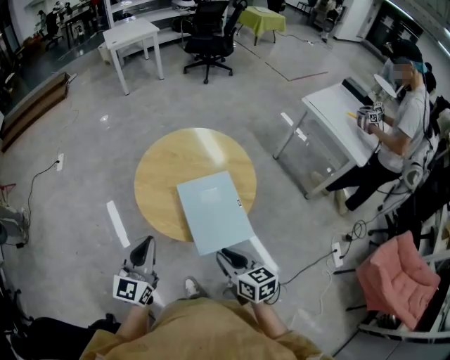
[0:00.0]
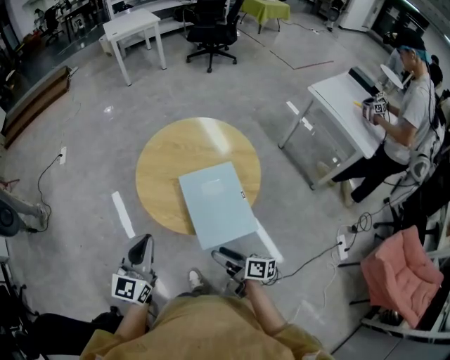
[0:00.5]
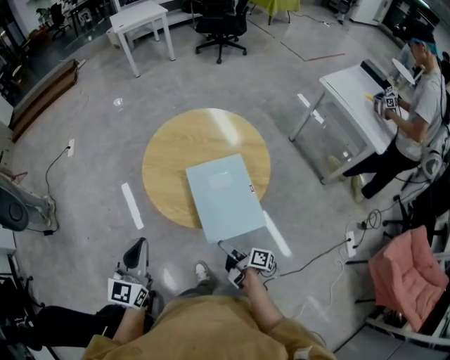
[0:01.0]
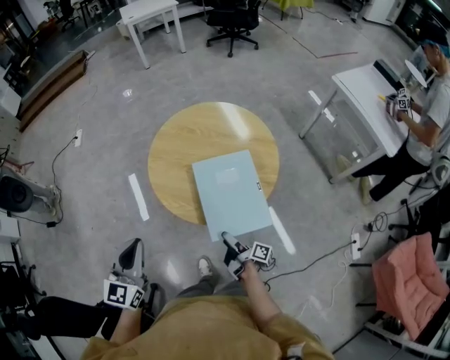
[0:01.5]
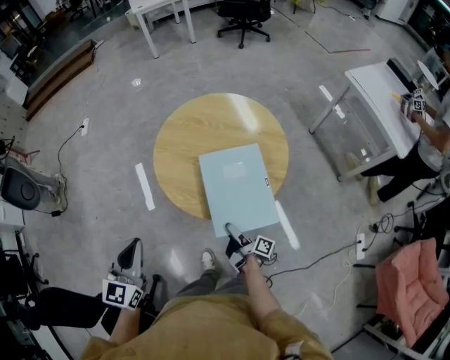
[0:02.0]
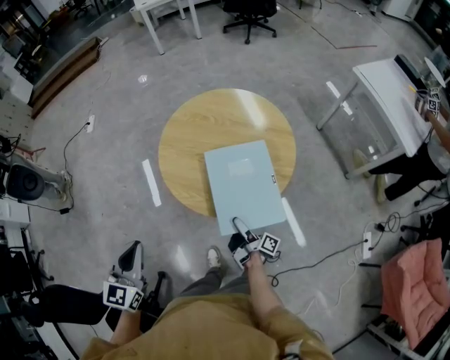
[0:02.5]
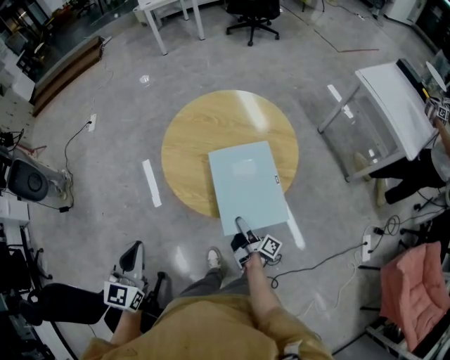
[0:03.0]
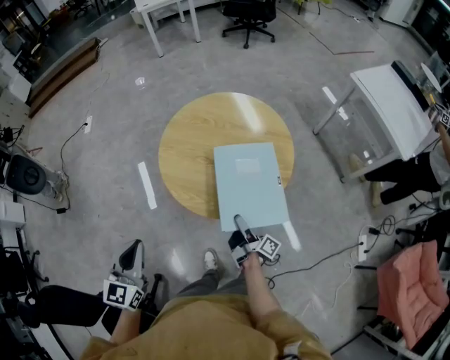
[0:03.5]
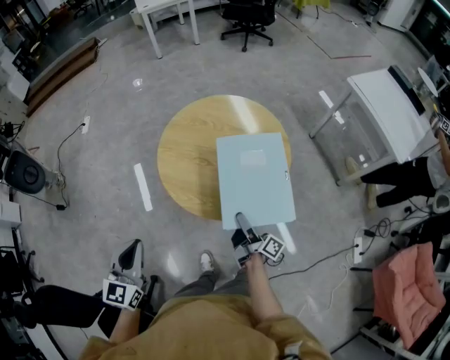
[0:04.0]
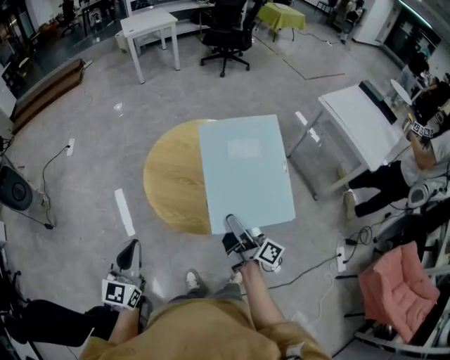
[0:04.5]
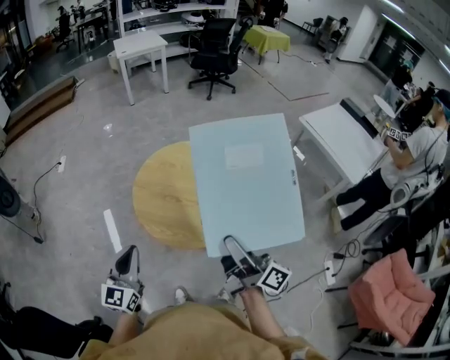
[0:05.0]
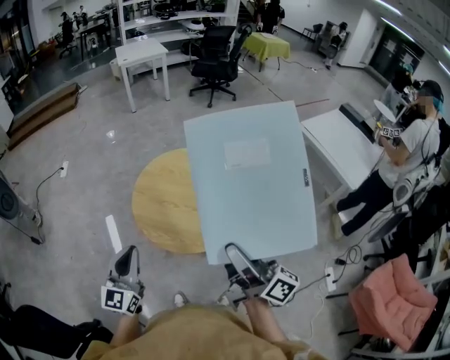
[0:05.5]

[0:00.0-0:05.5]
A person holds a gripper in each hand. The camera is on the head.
0:00.0 to 0:02.0: The left gripper moves to the left, about 10 cm, while the right gripper shifts about 25 cm downward, twists approximately 70 degrees clockwise, seen from behind, and opens.
0:02.0 to 0:03.5: The right gripper shifts by about 5 cm.
0:03.5 to 0:05.5: The right gripper is displaced upward by roughly 40 cm, and changes its angle by approximately 40 degrees; the left gripper heads to the right and upward, covering about 10 cm.

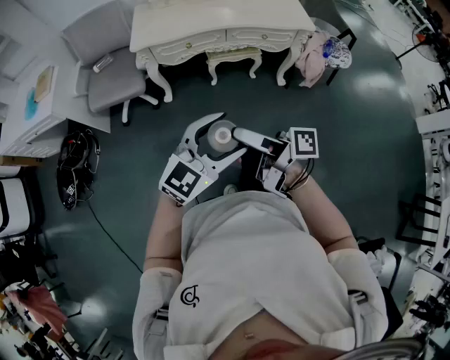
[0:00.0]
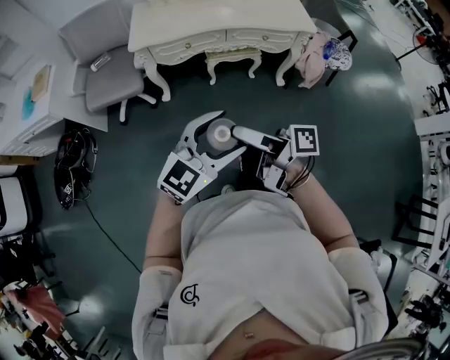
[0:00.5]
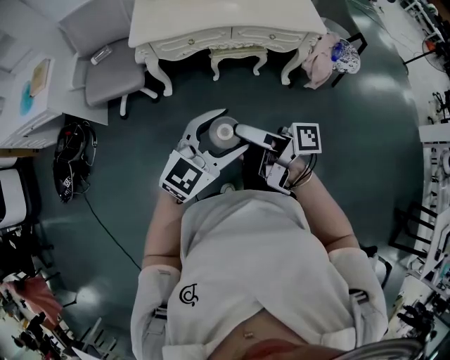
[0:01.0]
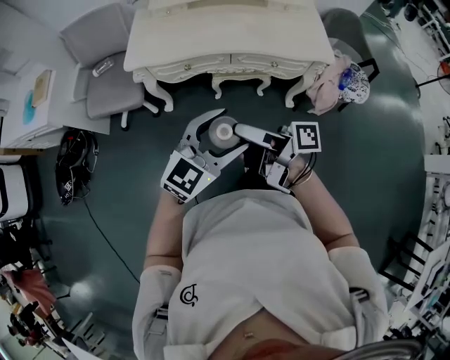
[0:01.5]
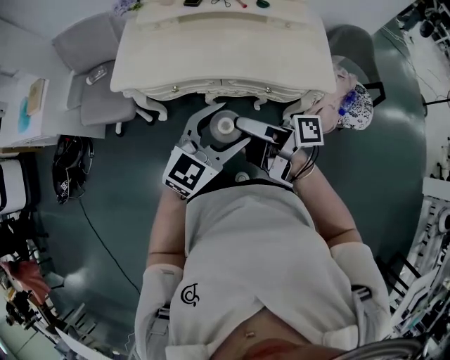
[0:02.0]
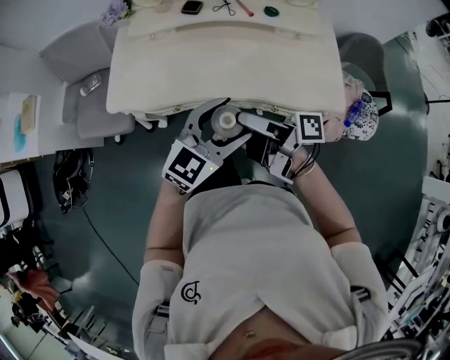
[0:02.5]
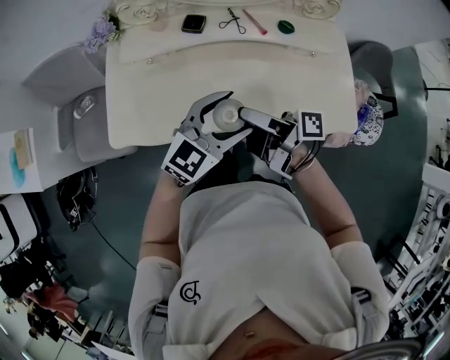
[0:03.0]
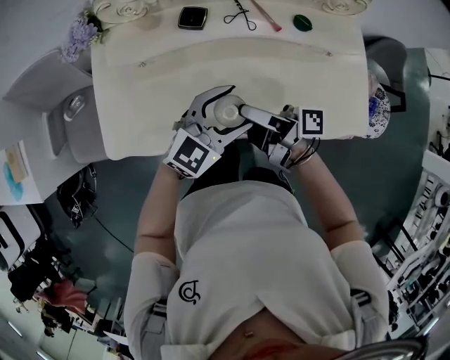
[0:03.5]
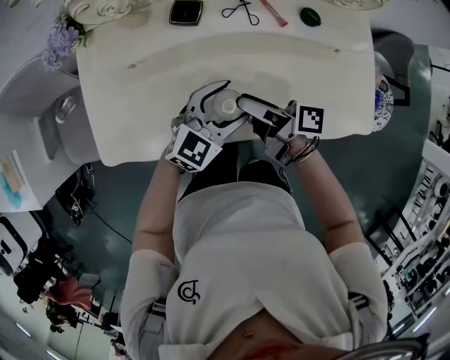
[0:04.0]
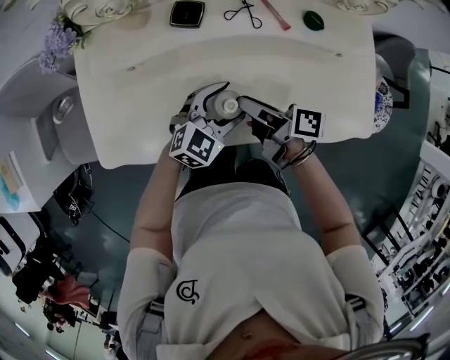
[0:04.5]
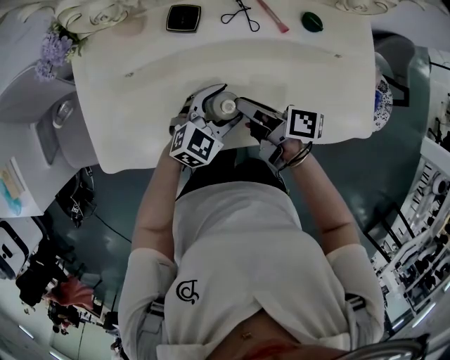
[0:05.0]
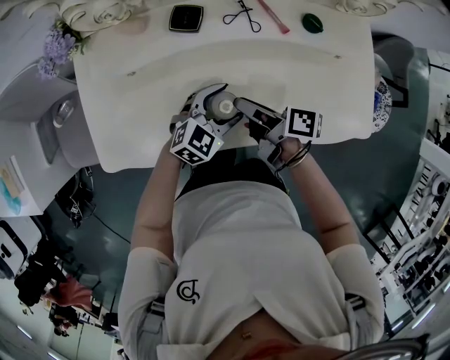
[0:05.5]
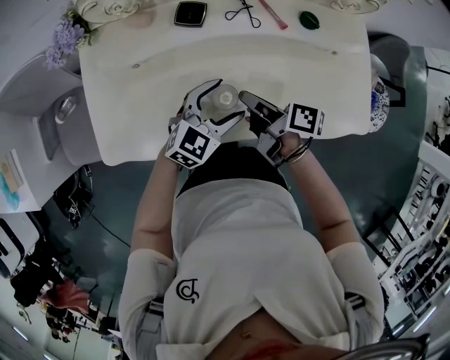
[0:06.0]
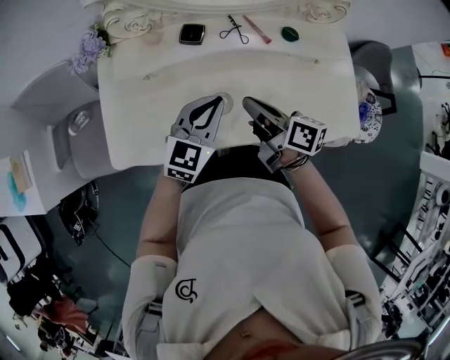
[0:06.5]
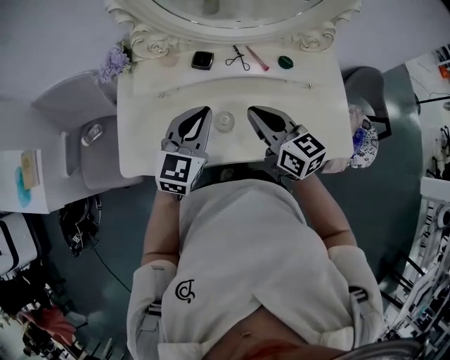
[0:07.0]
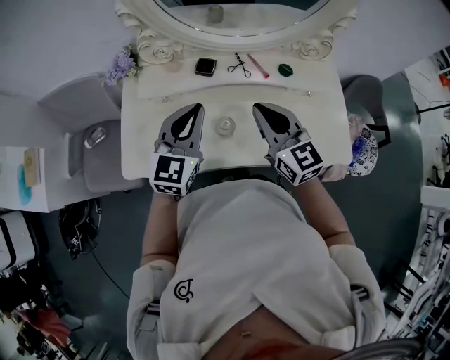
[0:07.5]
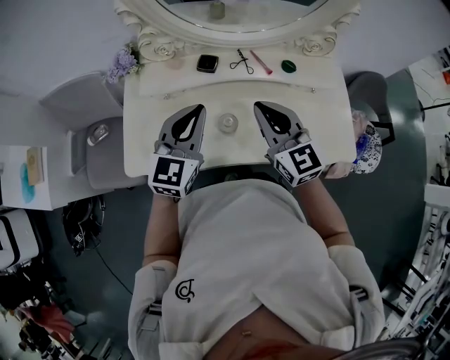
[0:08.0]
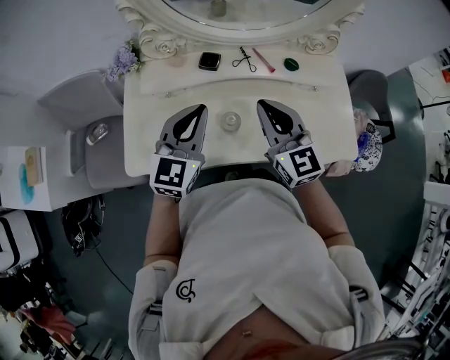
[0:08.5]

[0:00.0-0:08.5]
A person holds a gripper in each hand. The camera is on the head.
0:00.0 to 0:02.0: The left gripper ends up some 40 cm from where it was.
0:02.0 to 0:04.0: The left gripper changes place by about 40 cm.
0:04.0 to 0:06.5: The left gripper shifts roughly 10 cm upward, and closes its fingers.
0:06.5 to 0:08.5: The left gripper heads upward, covering approximately 10 cm.

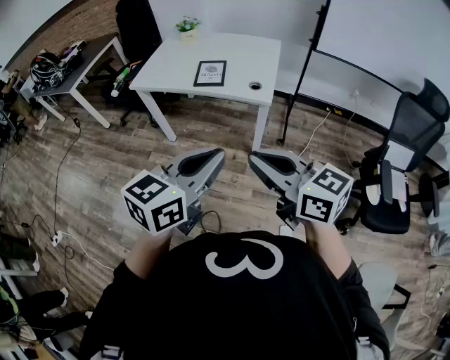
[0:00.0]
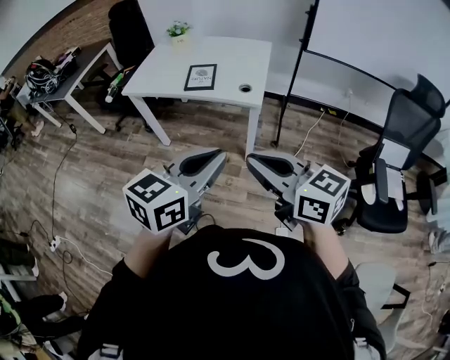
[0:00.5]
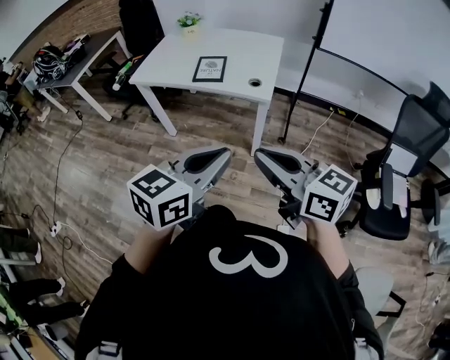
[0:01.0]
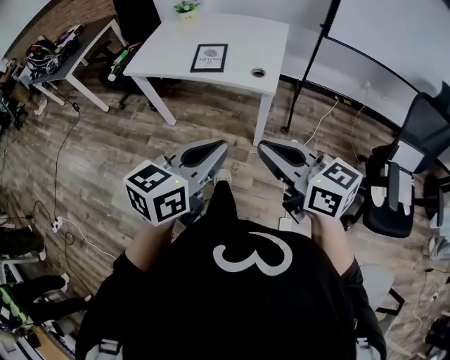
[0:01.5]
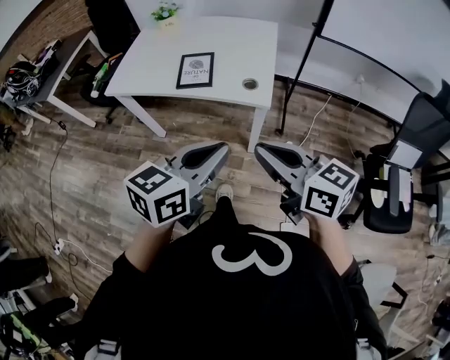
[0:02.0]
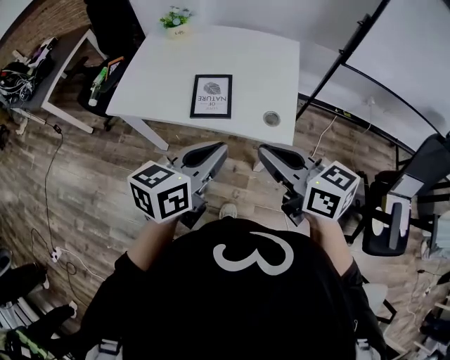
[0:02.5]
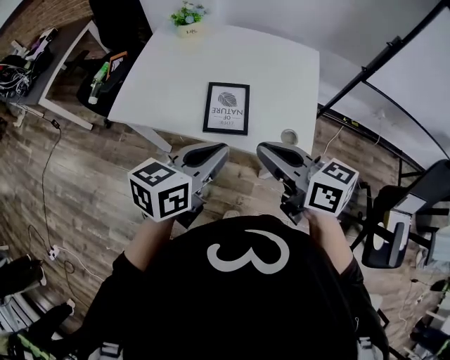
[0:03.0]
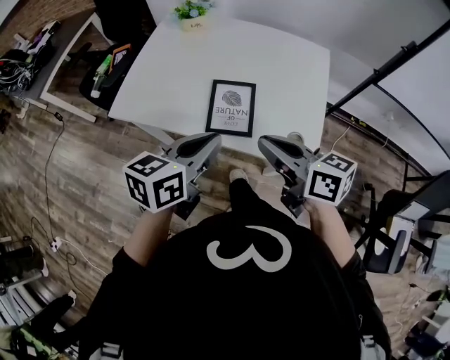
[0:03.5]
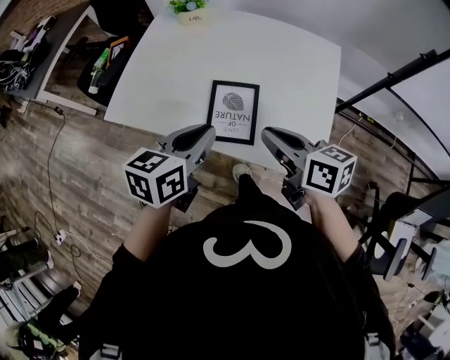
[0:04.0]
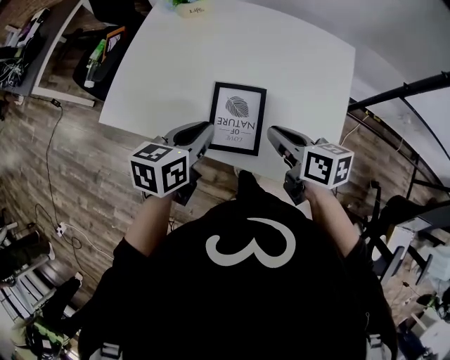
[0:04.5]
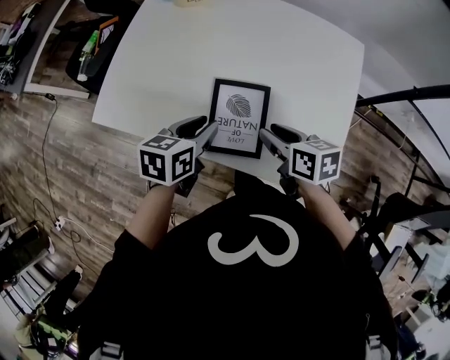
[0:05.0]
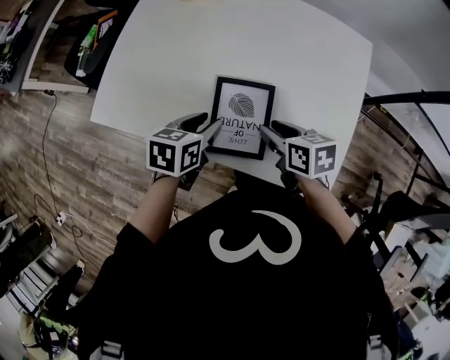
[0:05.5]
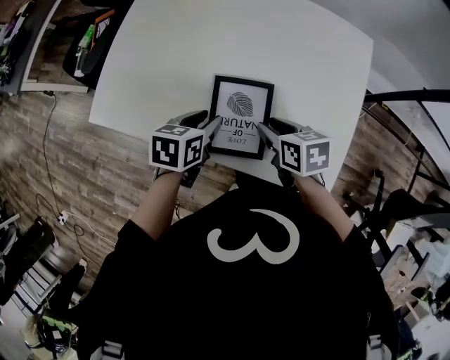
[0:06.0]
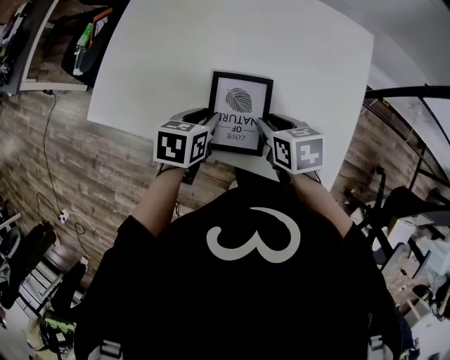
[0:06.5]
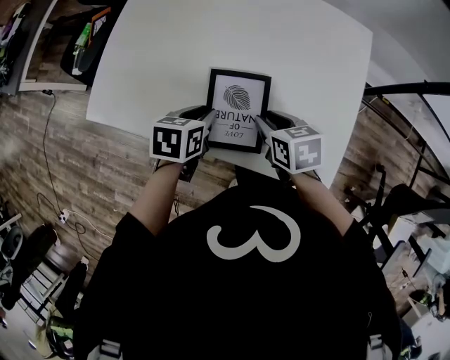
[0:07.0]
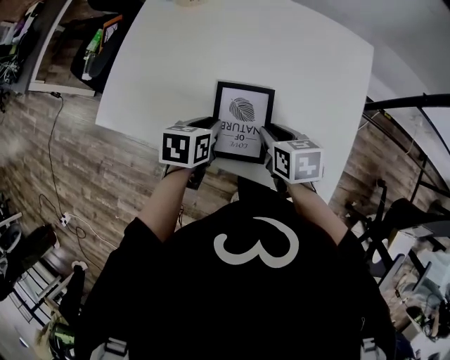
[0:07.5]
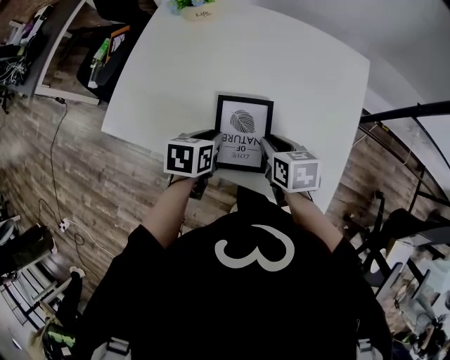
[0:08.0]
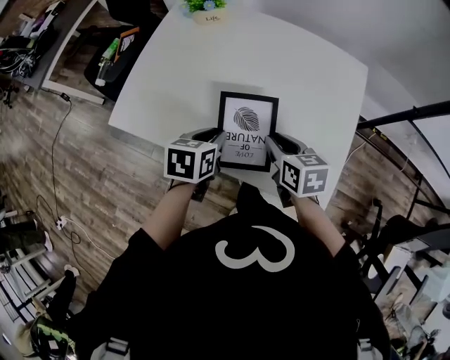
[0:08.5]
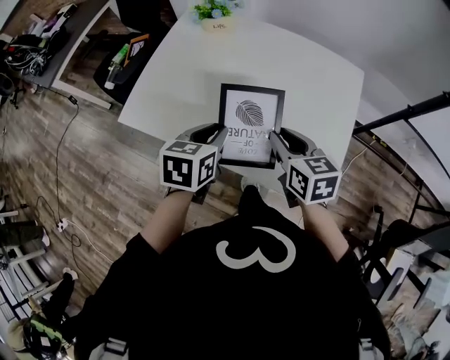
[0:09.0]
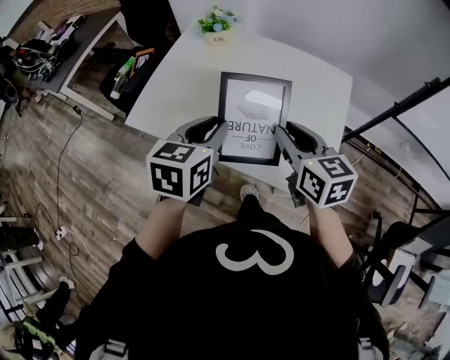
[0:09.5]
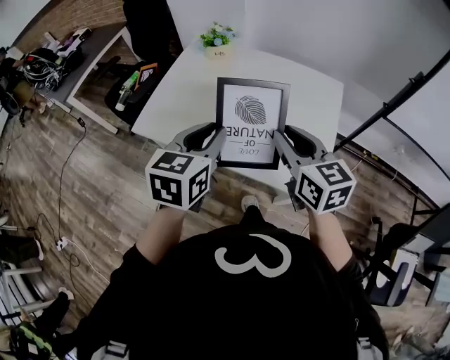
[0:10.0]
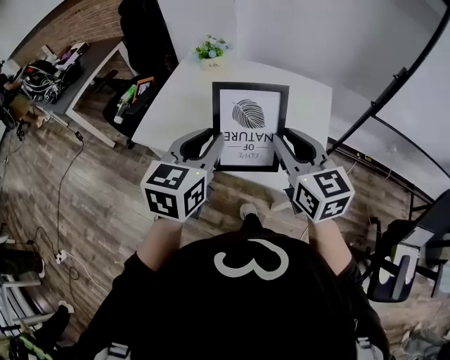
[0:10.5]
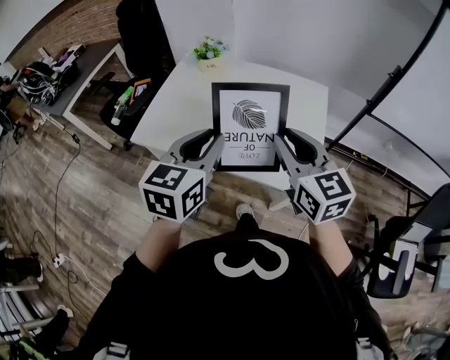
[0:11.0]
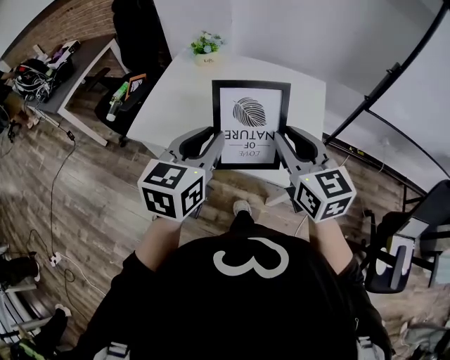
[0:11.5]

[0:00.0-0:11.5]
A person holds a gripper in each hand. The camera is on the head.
0:00.0 to 0:02.0: Both grippers move forward, approximately 15 cm.
0:02.0 to 0:04.0: Both grippers move forward, approximately 35 cm.
0:04.0 to 0:06.0: The two grippers go roughly 20 cm downward and forward. The left gripper swivels some 20 degrees, and opens up. Meanwhile the right gripper changes its angle by about 30 degrees, and opens its fingers.
0:06.0 to 0:07.5: The grippers move only a little.
0:07.5 to 0:09.5: The two grippers go about 20 cm upward. The right gripper turns by roughly 30 degrees. The left gripper swivels roughly 30 degrees.
0:09.5 to 0:11.5: The left gripper shifts approximately 10 cm backward and upward. Meanwhile the right gripper goes roughly 15 cm upward and backward.

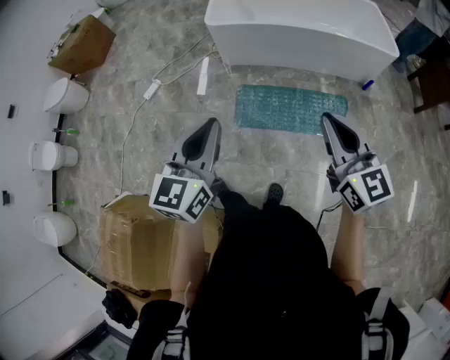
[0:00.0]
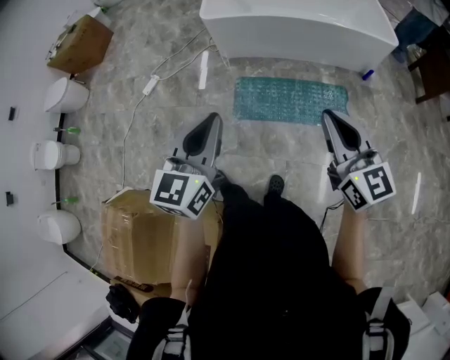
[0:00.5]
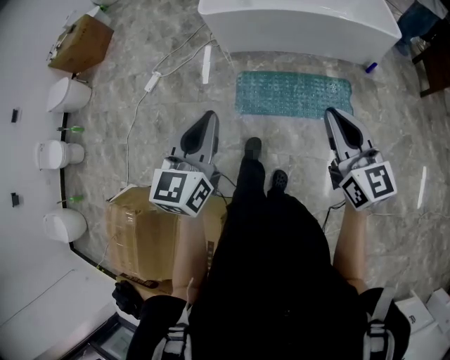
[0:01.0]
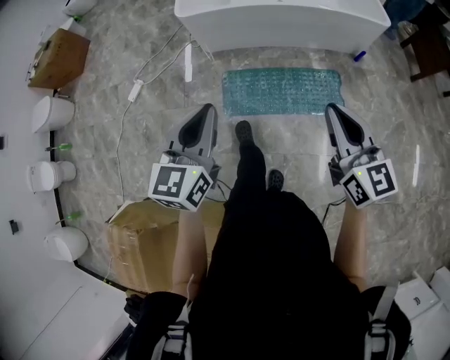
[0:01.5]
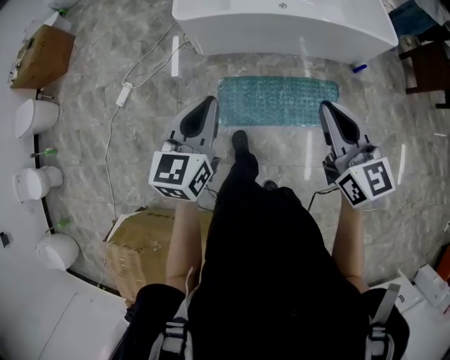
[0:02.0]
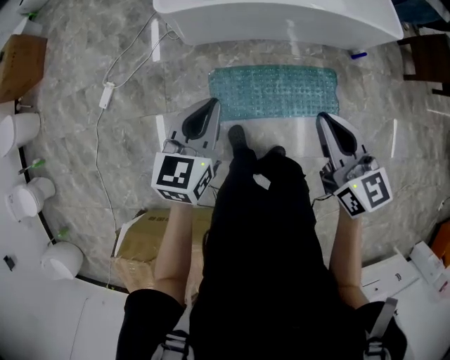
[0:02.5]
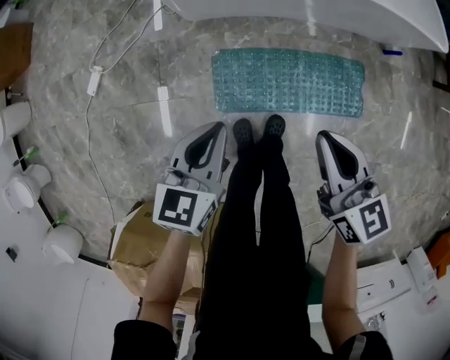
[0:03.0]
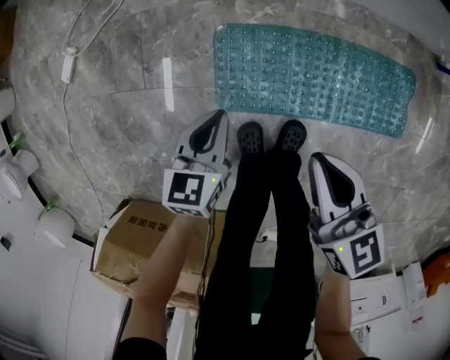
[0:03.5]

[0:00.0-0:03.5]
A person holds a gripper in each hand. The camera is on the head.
0:00.0 to 0:02.0: The grippers both shift forward by some 25 cm.
0:02.0 to 0:03.5: Both grippers move downward, some 60 cm. The left gripper turns by roughly 30 degrees. The right gripper rotates some 30 degrees.
